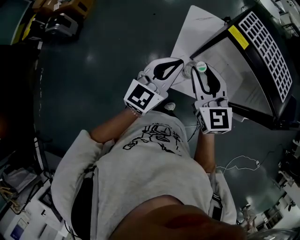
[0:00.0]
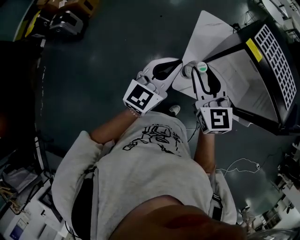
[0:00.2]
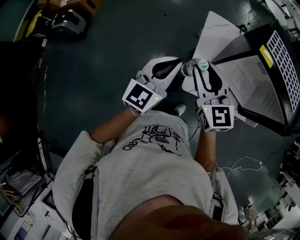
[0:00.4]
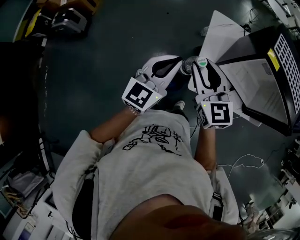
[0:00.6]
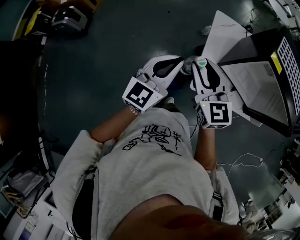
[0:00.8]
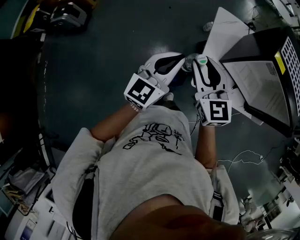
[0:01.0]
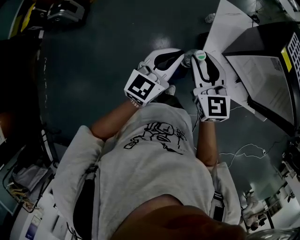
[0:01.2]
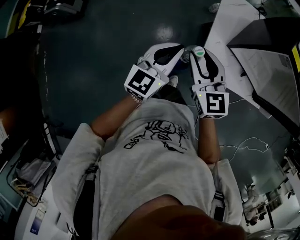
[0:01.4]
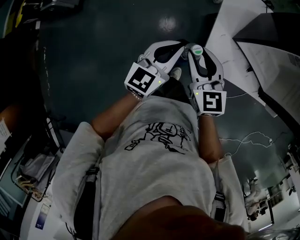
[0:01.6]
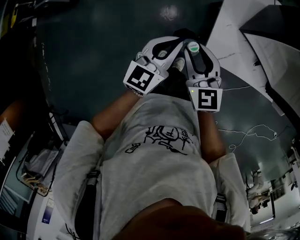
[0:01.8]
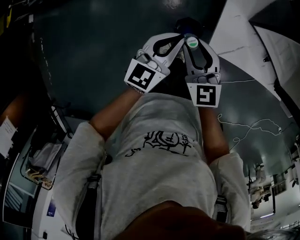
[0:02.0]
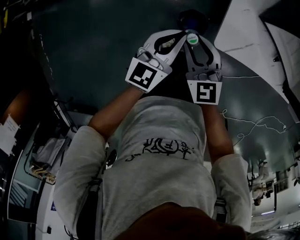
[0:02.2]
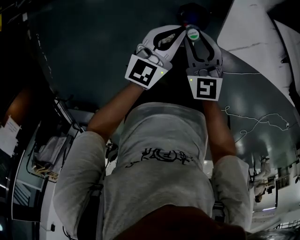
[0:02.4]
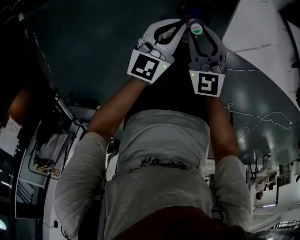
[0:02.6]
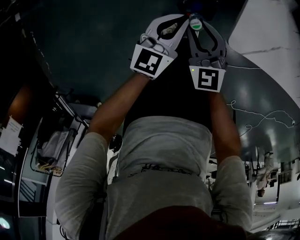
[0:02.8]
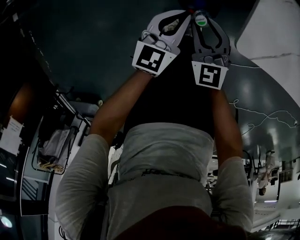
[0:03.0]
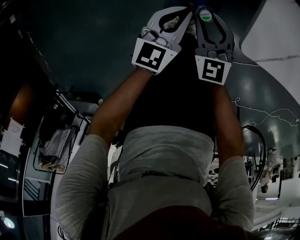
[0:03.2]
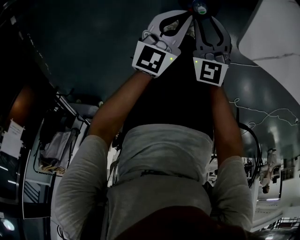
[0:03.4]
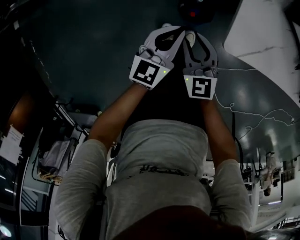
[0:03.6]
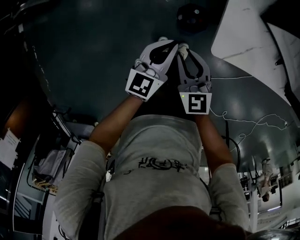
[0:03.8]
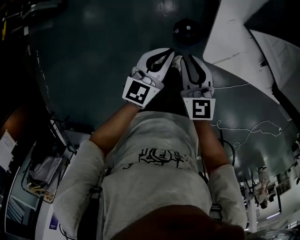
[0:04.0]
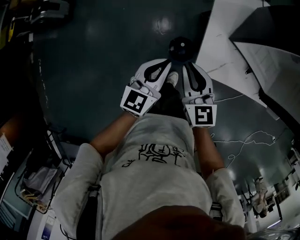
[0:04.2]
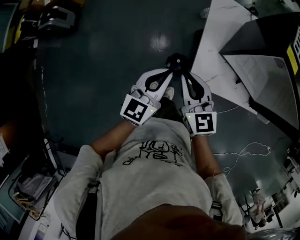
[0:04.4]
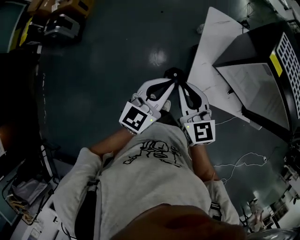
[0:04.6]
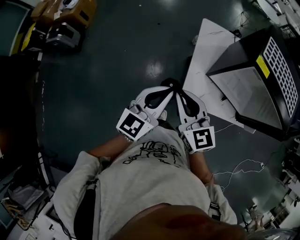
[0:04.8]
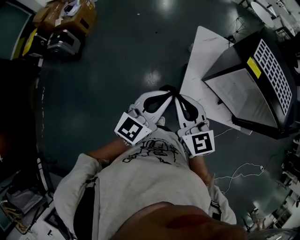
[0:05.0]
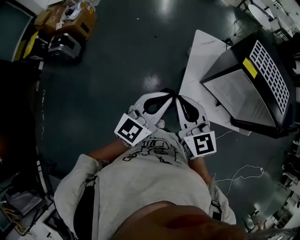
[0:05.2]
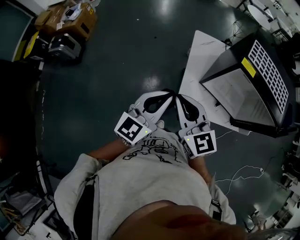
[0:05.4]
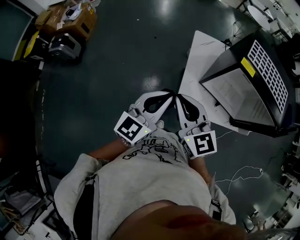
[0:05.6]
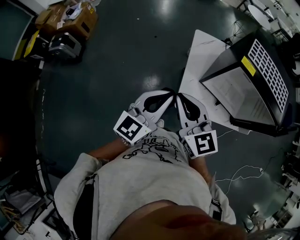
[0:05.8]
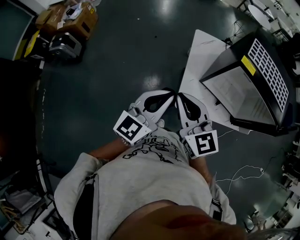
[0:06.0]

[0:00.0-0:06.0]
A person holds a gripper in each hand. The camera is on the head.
0:00.0 to 0:01.6: The grippers both shift to the left and downward by some 25 cm.
0:01.6 to 0:03.0: Both grippers move downward, about 35 cm.
0:03.0 to 0:04.4: The grippers both shift upward by approximately 40 cm. The right gripper closes its fingers.
0:04.4 to 0:06.0: The two grippers go some 20 cm upward.

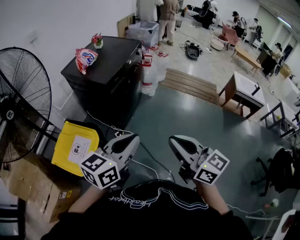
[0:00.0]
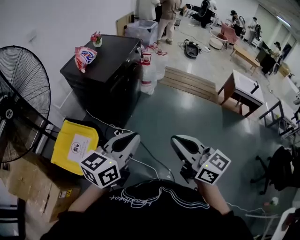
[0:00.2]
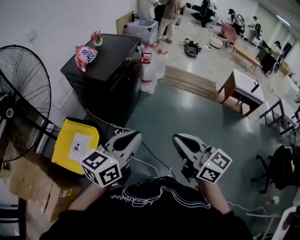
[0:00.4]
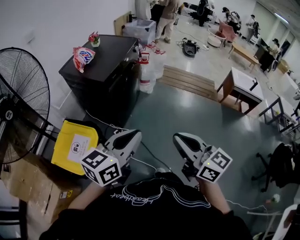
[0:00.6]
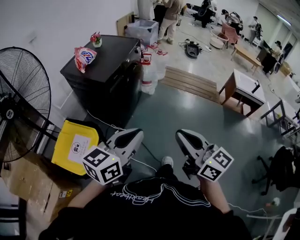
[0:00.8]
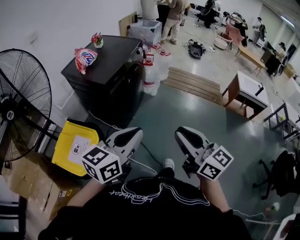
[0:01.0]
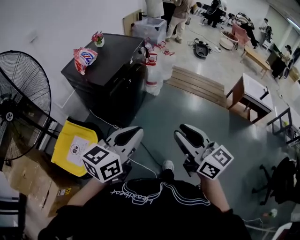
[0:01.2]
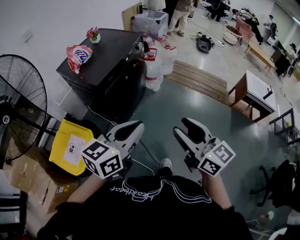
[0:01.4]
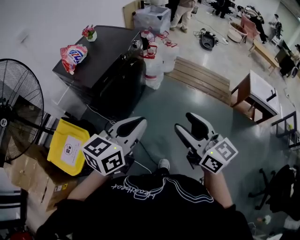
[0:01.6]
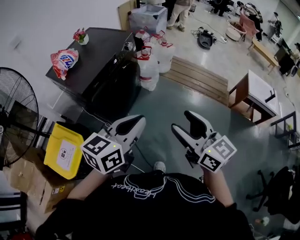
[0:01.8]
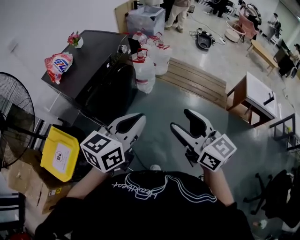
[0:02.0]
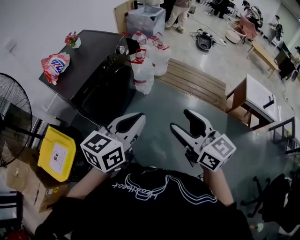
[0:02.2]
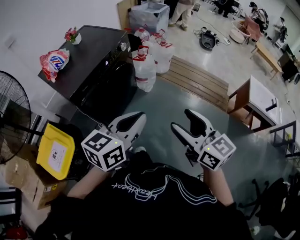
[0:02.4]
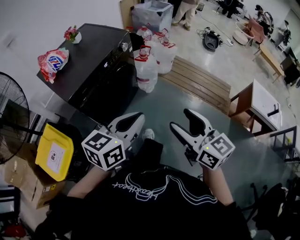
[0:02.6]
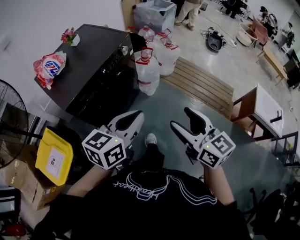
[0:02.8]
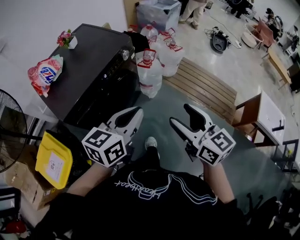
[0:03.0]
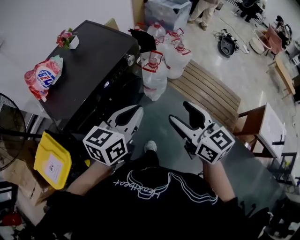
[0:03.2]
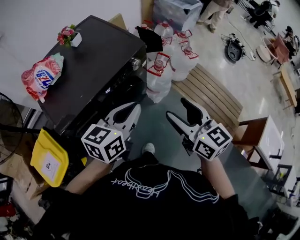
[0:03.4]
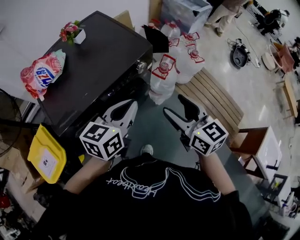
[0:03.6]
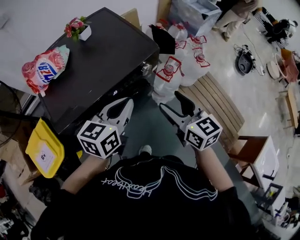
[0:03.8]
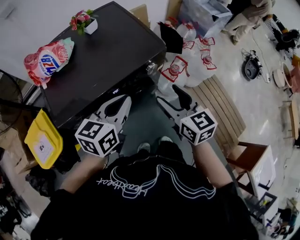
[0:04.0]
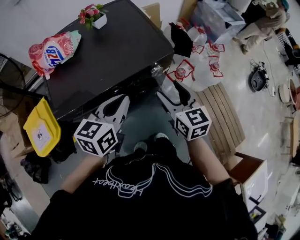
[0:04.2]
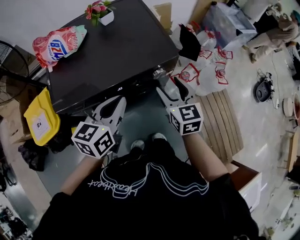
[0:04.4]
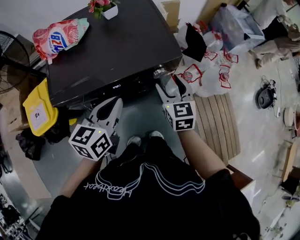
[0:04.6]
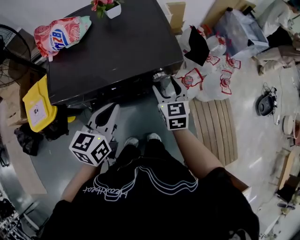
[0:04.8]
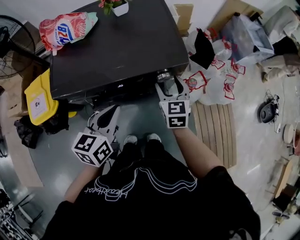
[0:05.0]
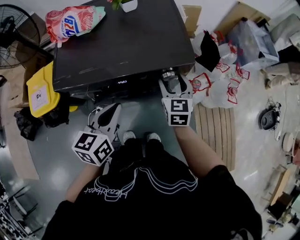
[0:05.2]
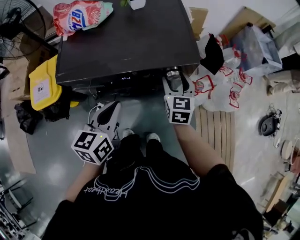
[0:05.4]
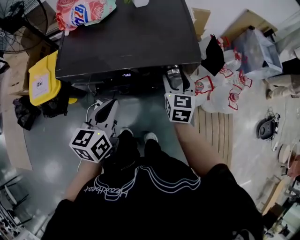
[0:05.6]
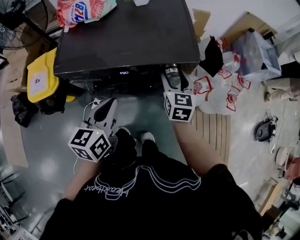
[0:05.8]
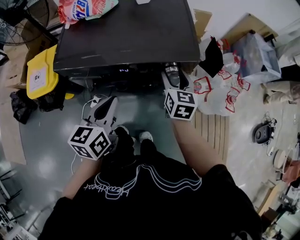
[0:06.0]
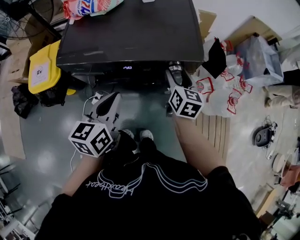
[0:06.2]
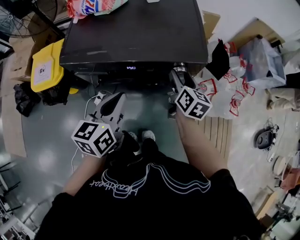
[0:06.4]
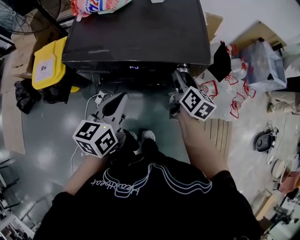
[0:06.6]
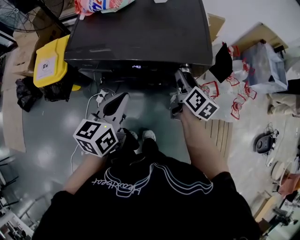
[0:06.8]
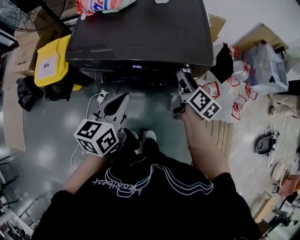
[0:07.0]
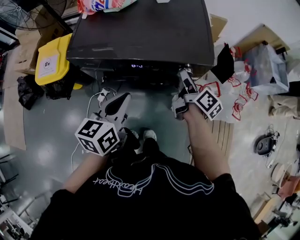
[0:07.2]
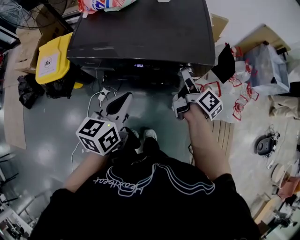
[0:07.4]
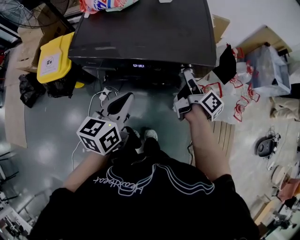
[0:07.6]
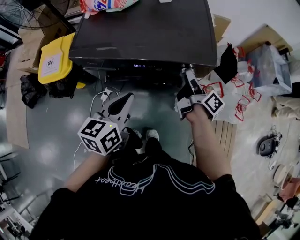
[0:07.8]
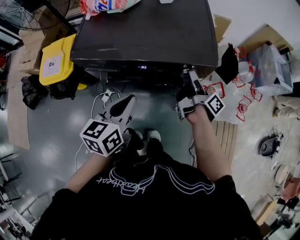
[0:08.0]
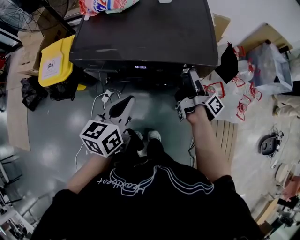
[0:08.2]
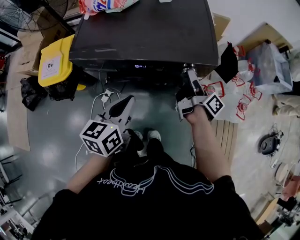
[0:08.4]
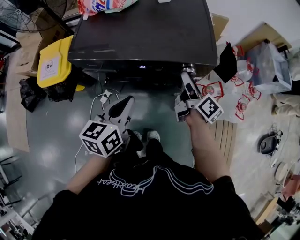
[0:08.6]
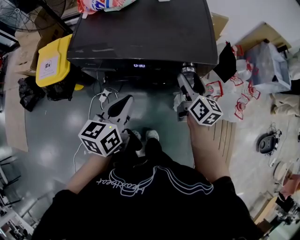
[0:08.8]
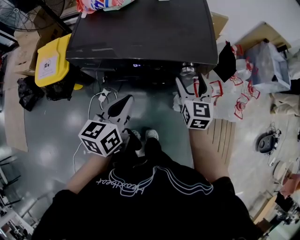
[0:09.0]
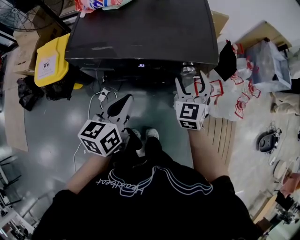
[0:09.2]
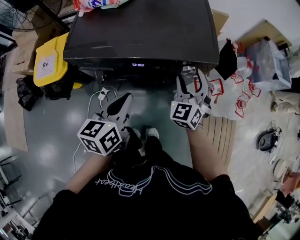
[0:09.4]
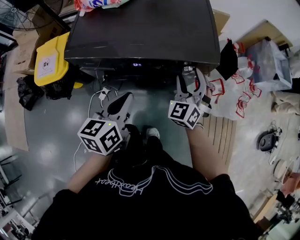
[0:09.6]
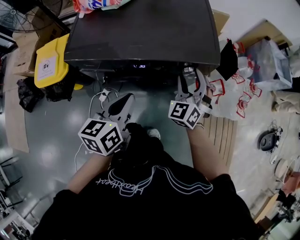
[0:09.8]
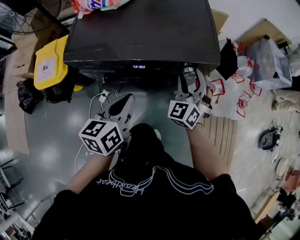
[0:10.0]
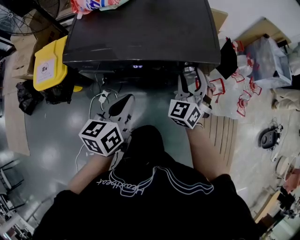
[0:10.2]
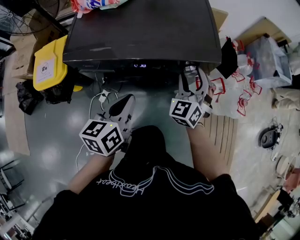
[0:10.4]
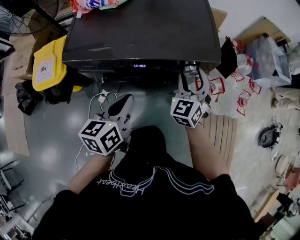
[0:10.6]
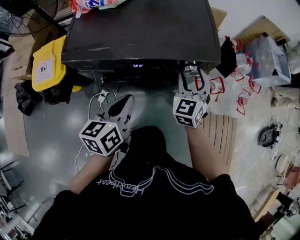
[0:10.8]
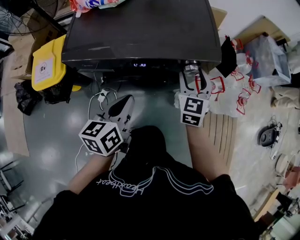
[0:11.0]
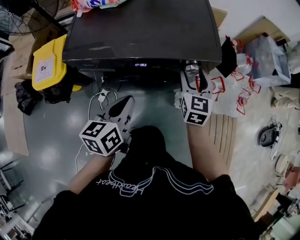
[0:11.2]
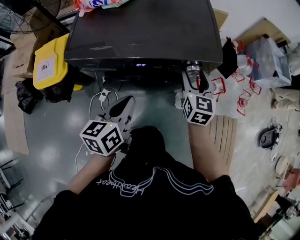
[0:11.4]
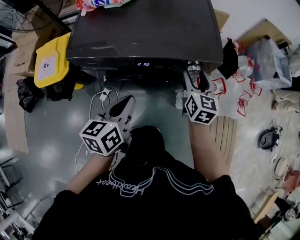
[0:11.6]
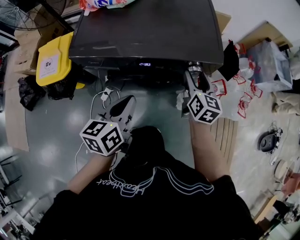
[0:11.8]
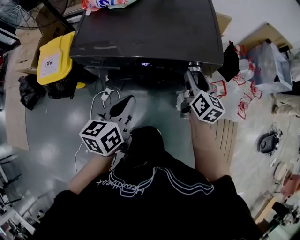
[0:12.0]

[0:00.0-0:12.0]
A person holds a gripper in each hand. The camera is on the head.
0:00.0 to 0:01.6: Both grippers move forward and to the right, some 20 cm. The right gripper opens.
0:01.6 to 0:03.0: The two grippers go roughly 30 cm forward.
0:03.0 to 0:04.4: The left gripper moves roughly 25 cm, and swivels approximately 40 degrees. Meanwhile the right gripper moves some 40 cm, and turns by about 30 degrees.
0:04.4 to 0:06.0: The left gripper goes roughly 5 cm backward and downward, and swivels about 30 degrees, while the right gripper heads downward and forward, covering some 10 cm.
0:06.0 to 0:07.6: The right gripper twists approximately 60 degrees clockwise, seen from behind.
0:07.6 to 0:09.0: The right gripper twists some 70 degrees counterclockwise, seen from behind.
0:09.0 to 0:10.4: The right gripper rotates roughly 40 degrees.
0:10.4 to 0:12.0: The right gripper twists some 70 degrees clockwise, seen from behind.

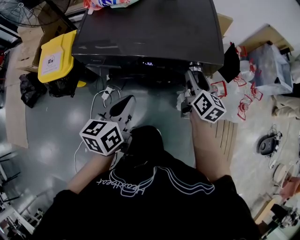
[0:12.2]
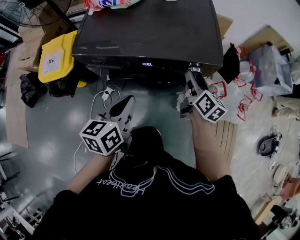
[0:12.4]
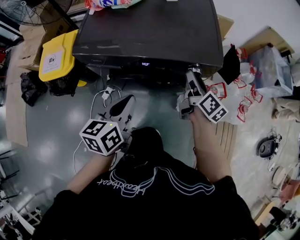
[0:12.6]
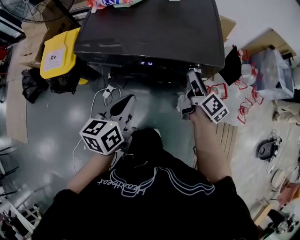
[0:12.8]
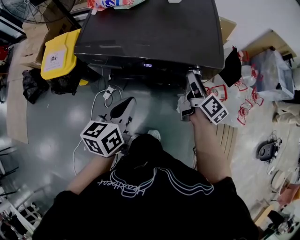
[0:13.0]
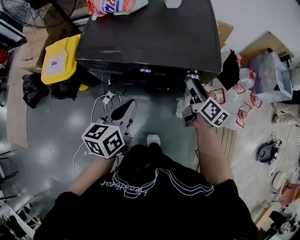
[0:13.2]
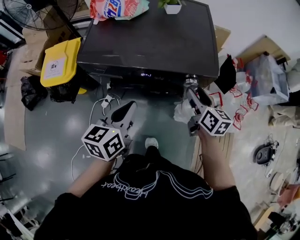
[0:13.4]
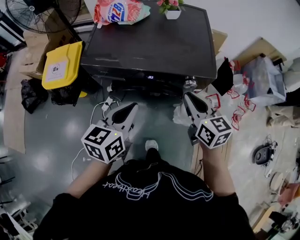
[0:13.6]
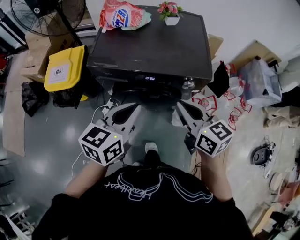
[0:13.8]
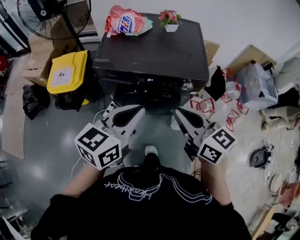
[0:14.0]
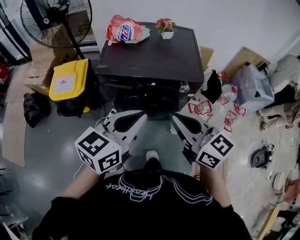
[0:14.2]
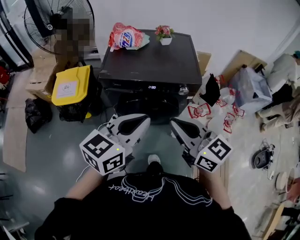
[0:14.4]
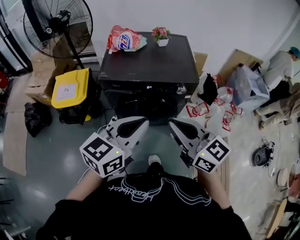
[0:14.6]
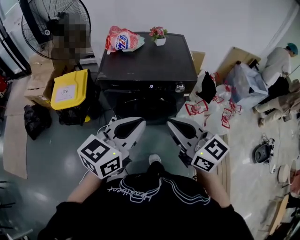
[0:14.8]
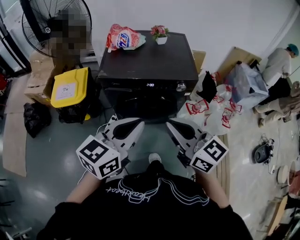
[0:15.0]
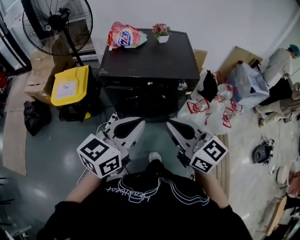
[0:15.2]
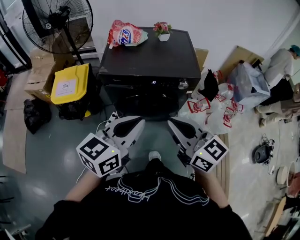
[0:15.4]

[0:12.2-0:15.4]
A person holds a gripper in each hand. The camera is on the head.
0:12.2 to 0:13.8: The left gripper shifts about 10 cm upward. Meanwhile the right gripper heads upward, backward and to the left, covering about 25 cm, rotates some 40 degrees, and closes up.
0:13.8 to 0:15.4: The right gripper goes roughly 20 cm backward, upward and to the left. The left gripper heads backward and upward, covering roughly 15 cm.

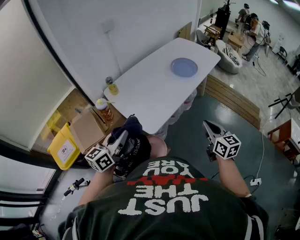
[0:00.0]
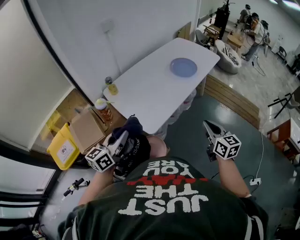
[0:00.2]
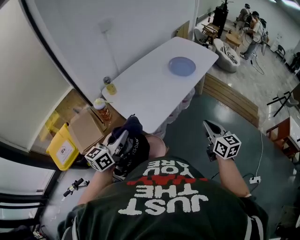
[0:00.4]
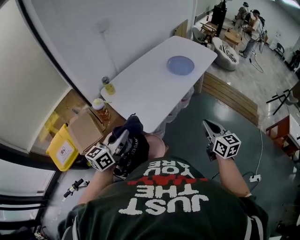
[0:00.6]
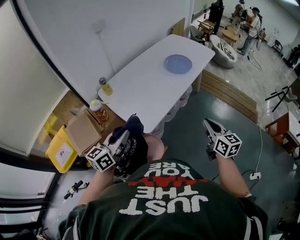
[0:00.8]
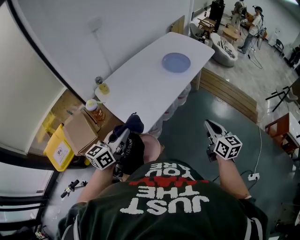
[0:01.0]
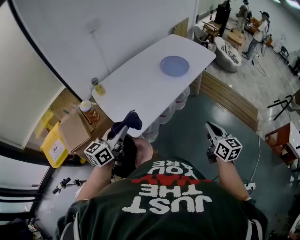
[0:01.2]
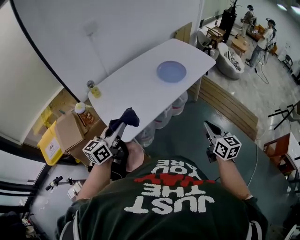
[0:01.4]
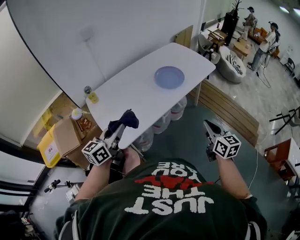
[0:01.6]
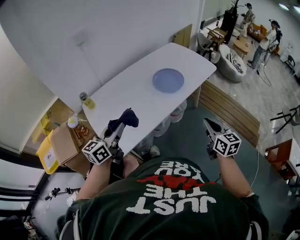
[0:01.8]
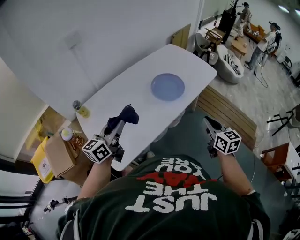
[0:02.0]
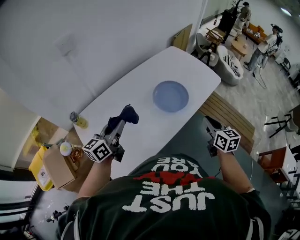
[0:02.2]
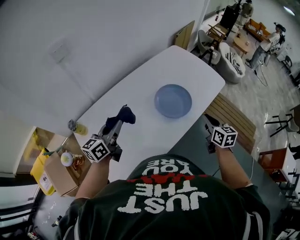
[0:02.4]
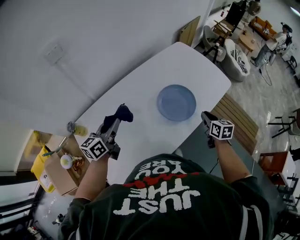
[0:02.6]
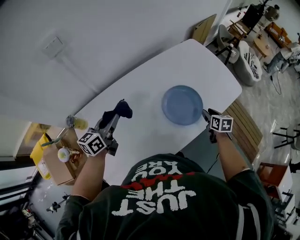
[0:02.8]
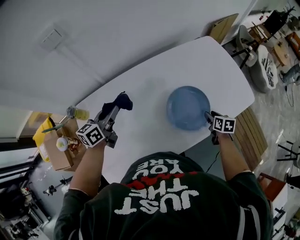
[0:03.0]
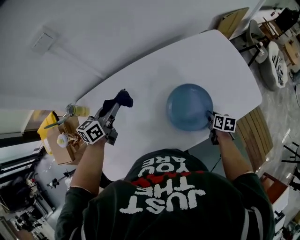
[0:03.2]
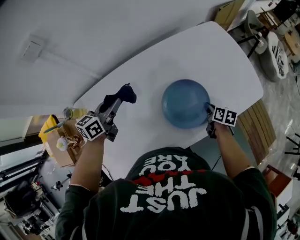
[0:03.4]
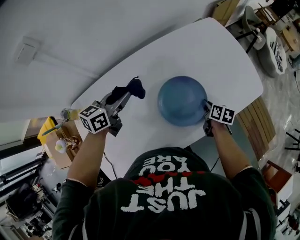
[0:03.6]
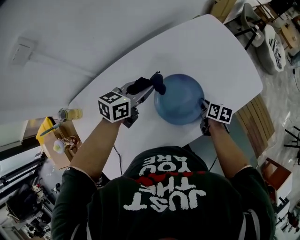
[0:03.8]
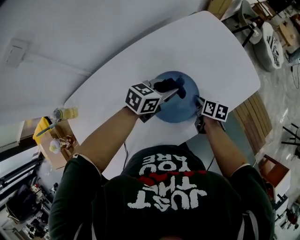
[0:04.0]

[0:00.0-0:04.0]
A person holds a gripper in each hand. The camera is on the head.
0:00.0 to 0:01.4: Both grippers travel together to the right and forward, some 20 cm.
0:01.4 to 0:02.6: The grippers both shift forward by approximately 40 cm. The right gripper changes its angle by approximately 20 degrees.
0:02.6 to 0:04.0: The right gripper moves downward and forward, roughly 20 cm, swivels approximately 30 degrees, and opens, then closes again, while the left gripper moves to the right, forward and downward, some 35 cm, and changes its angle by approximately 40 degrees.
